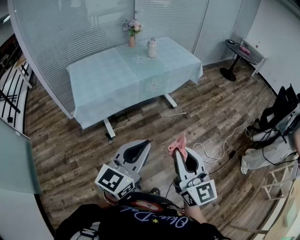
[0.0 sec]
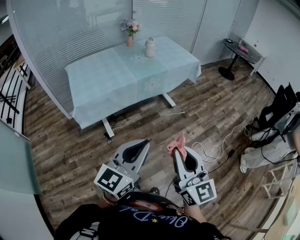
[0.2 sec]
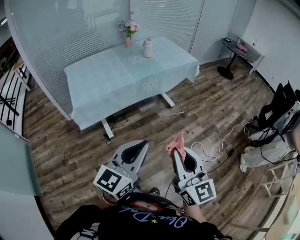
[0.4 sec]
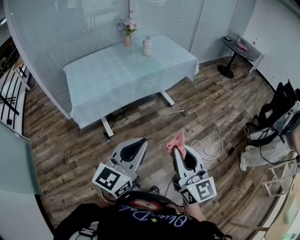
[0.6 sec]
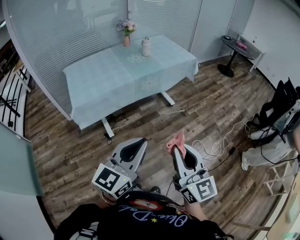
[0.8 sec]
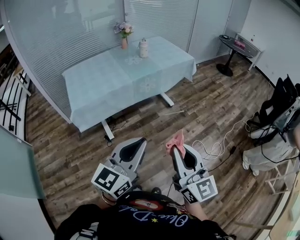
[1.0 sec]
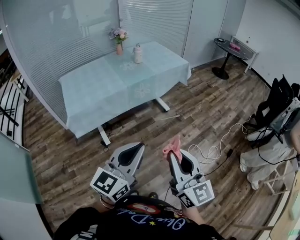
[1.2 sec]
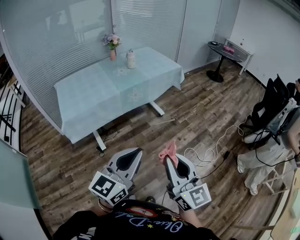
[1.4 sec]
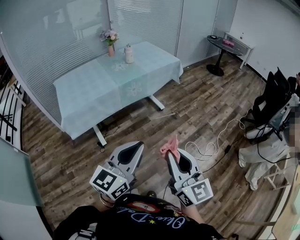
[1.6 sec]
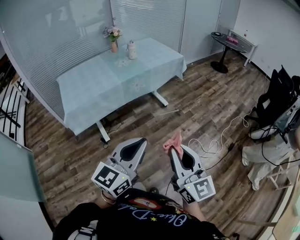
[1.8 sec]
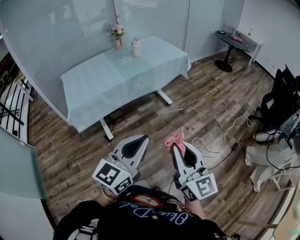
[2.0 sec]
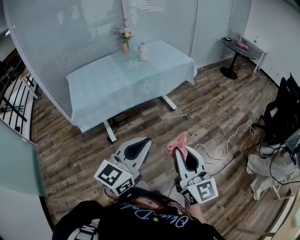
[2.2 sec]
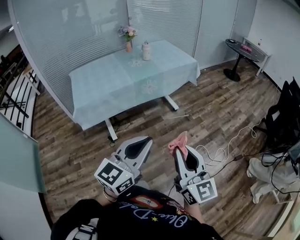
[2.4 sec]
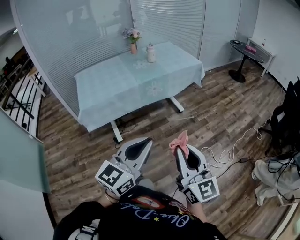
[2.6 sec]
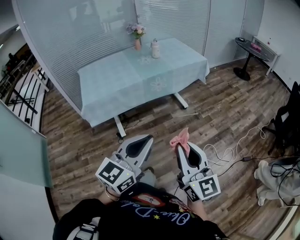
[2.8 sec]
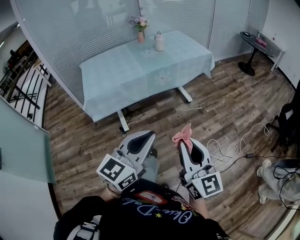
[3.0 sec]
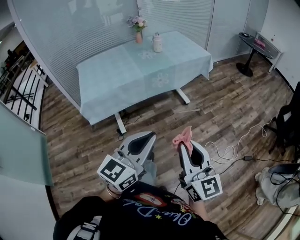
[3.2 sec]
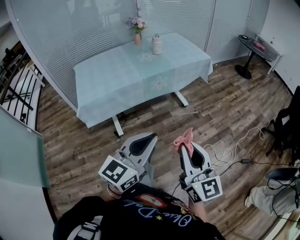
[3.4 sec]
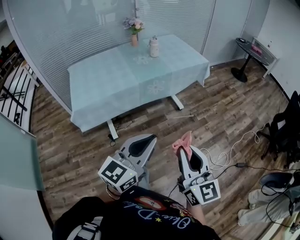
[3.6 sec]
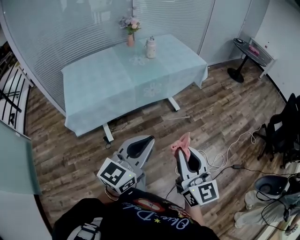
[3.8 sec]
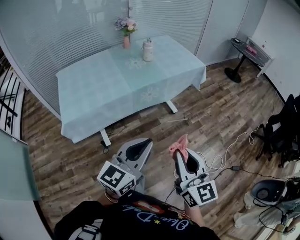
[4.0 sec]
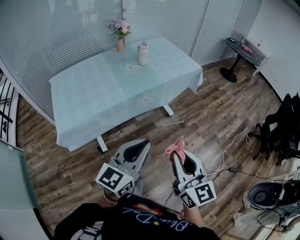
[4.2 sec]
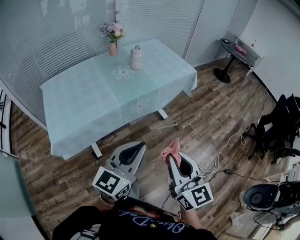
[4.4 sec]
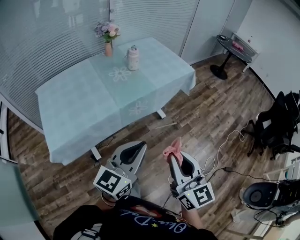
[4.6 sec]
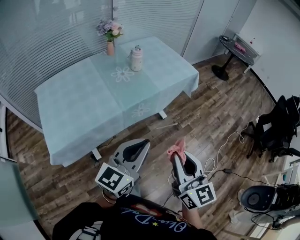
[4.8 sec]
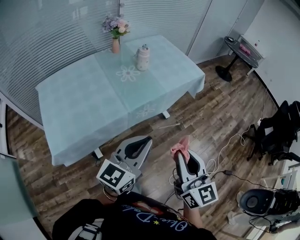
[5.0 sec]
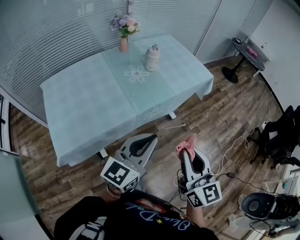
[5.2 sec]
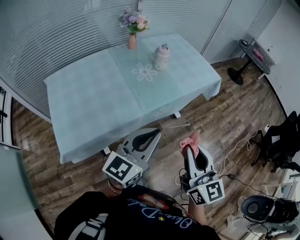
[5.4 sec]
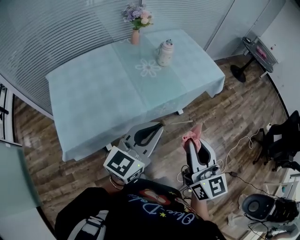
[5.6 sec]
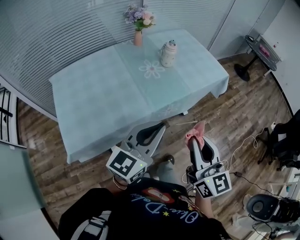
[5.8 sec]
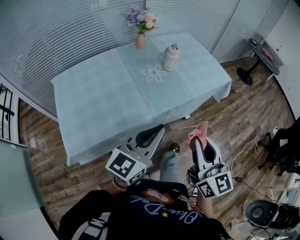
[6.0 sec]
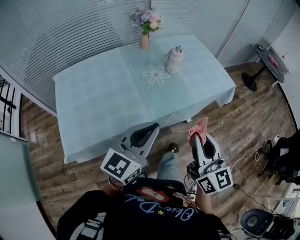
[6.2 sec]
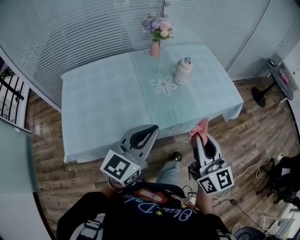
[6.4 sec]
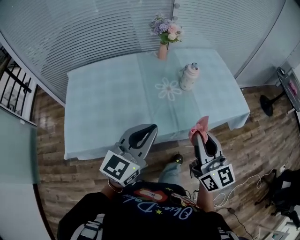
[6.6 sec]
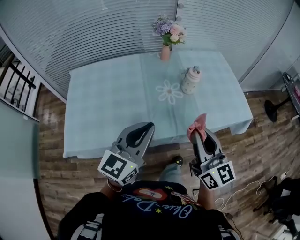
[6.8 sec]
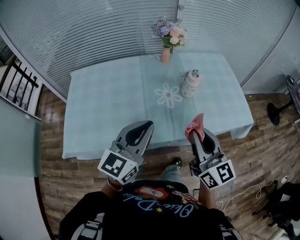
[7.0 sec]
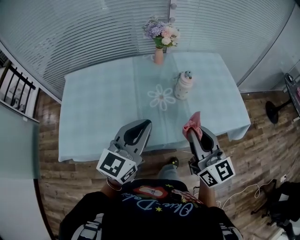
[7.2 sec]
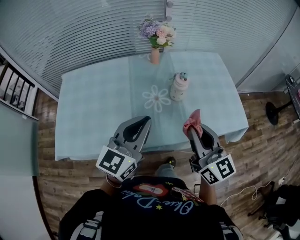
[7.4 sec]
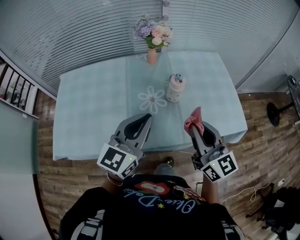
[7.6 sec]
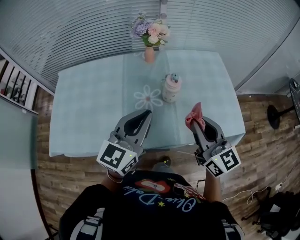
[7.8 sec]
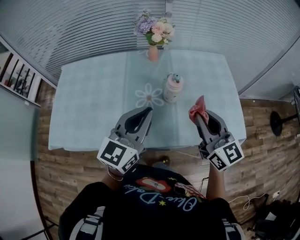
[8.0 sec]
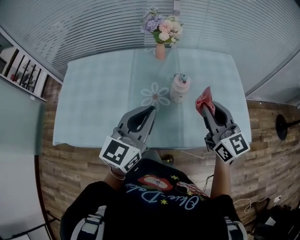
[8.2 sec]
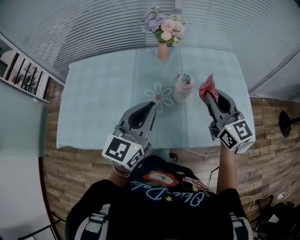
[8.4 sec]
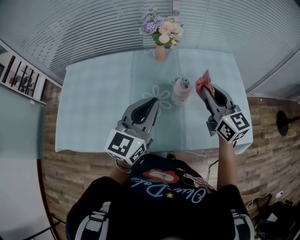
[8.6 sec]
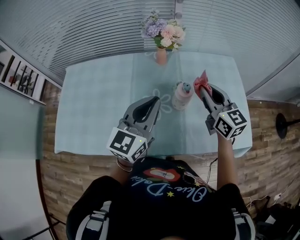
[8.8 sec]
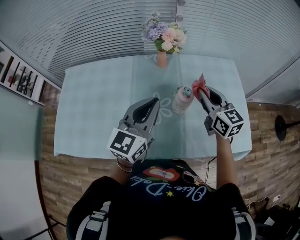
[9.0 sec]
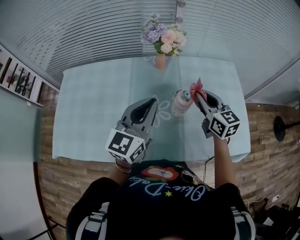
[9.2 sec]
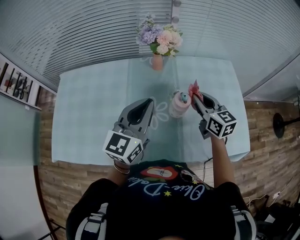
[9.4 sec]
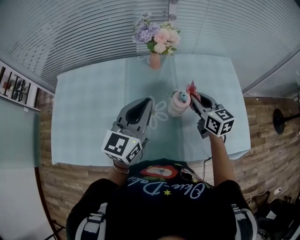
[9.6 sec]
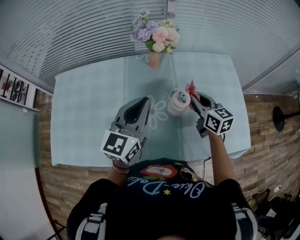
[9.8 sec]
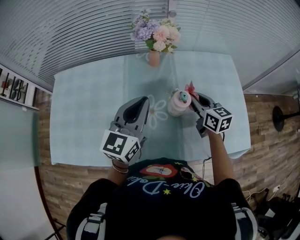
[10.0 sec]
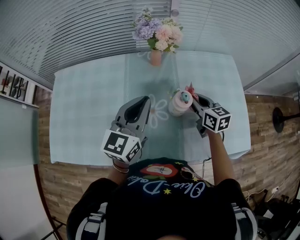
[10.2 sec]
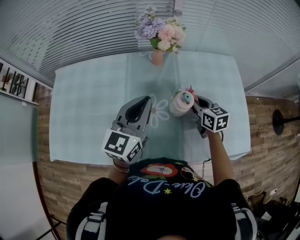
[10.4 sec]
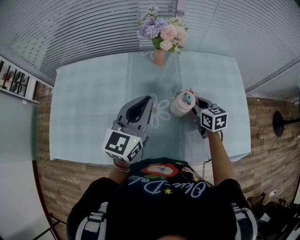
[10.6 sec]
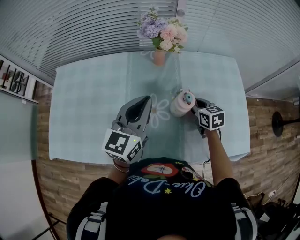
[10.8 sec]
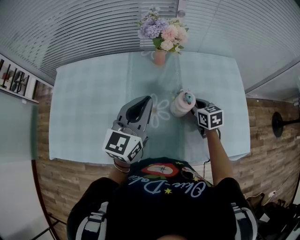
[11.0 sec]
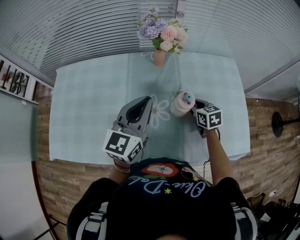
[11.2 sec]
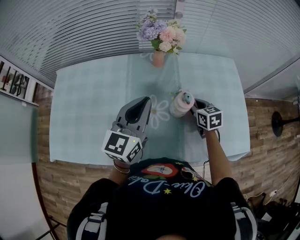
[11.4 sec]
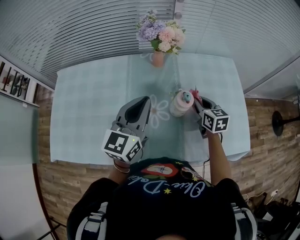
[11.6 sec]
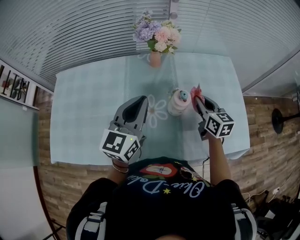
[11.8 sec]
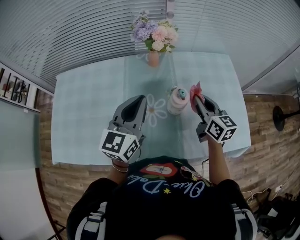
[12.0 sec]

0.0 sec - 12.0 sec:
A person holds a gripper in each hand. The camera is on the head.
0.0 sec - 1.6 sec: Both grippers travel together to the right, roughly 10 cm.
1.6 sec - 3.0 sec: There are only small adjustments of the grippers.
3.0 sec - 4.4 sec: The two grippers go roughly 25 cm forward.
4.4 sec - 6.0 sec: The grippers both shift forward and to the left by approximately 20 cm.
6.0 sec - 7.6 sec: The right gripper shifts by roughly 35 cm, and rotates roughly 30 degrees. Meanwhile the left gripper shifts by roughly 25 cm, and turns by approximately 30 degrees.
7.6 sec - 9.0 sec: The left gripper heads forward, covering roughly 10 cm; the right gripper shifts roughly 25 cm forward.
9.0 sec - 10.4 sec: The left gripper changes place by some 5 cm. Meanwhile the right gripper is displaced downward by roughly 15 cm, and rotates about 20 degrees.
10.4 sec - 12.0 sec: The right gripper travels upward by approximately 10 cm.

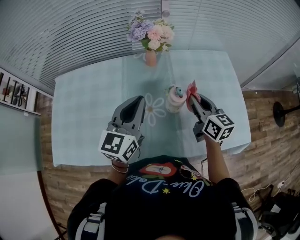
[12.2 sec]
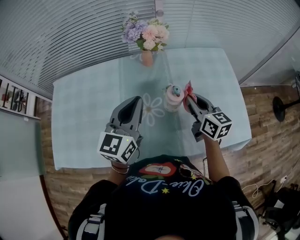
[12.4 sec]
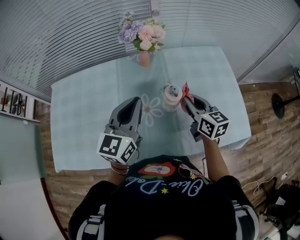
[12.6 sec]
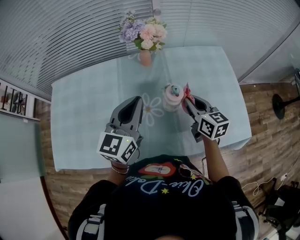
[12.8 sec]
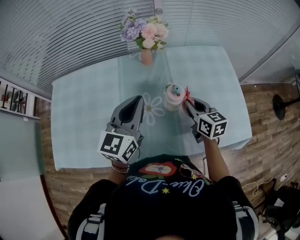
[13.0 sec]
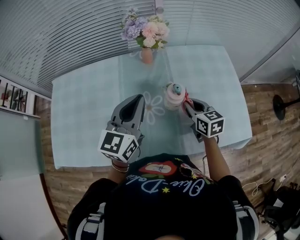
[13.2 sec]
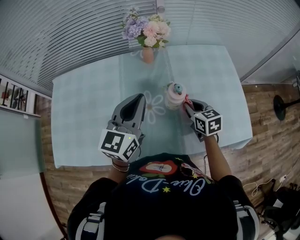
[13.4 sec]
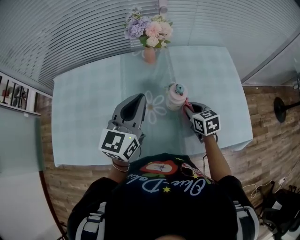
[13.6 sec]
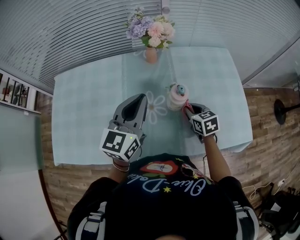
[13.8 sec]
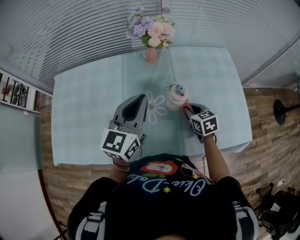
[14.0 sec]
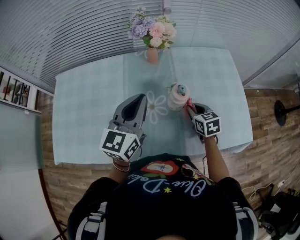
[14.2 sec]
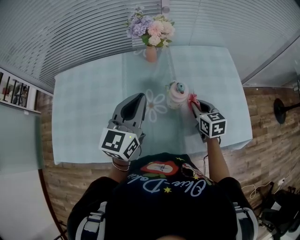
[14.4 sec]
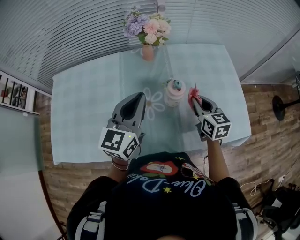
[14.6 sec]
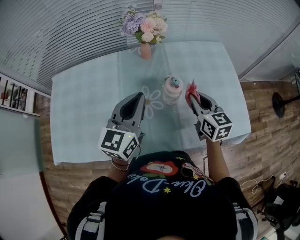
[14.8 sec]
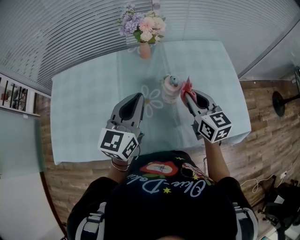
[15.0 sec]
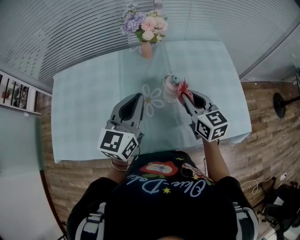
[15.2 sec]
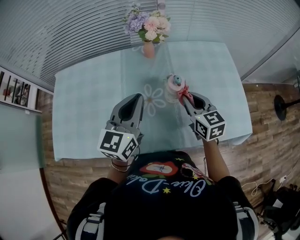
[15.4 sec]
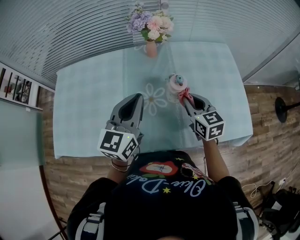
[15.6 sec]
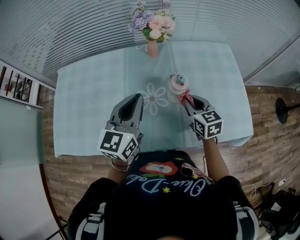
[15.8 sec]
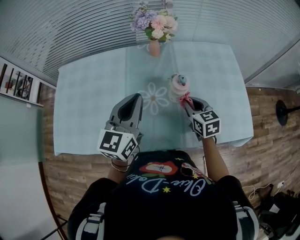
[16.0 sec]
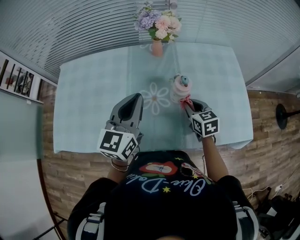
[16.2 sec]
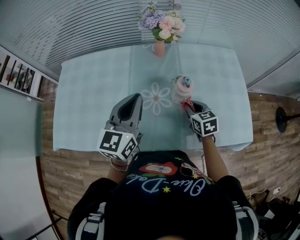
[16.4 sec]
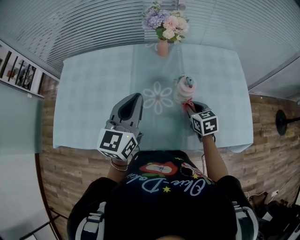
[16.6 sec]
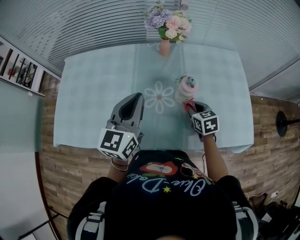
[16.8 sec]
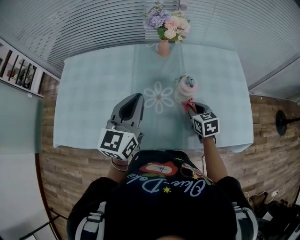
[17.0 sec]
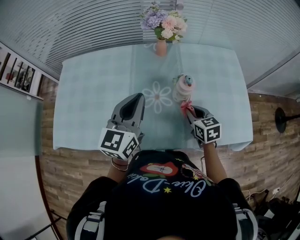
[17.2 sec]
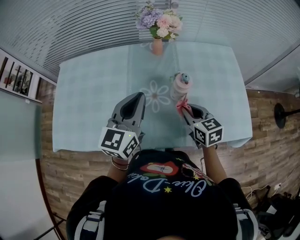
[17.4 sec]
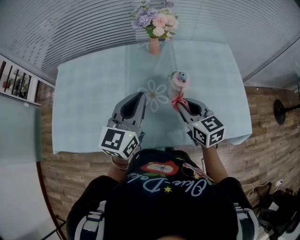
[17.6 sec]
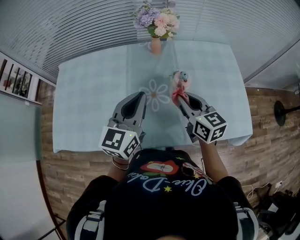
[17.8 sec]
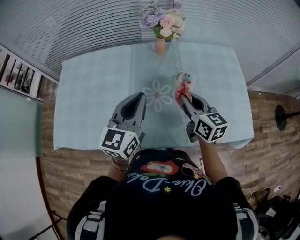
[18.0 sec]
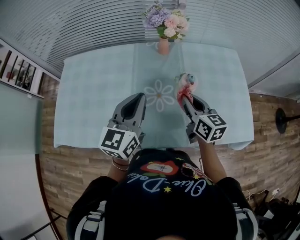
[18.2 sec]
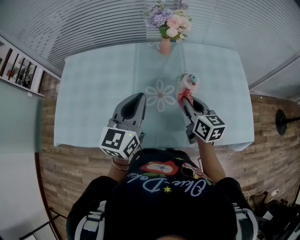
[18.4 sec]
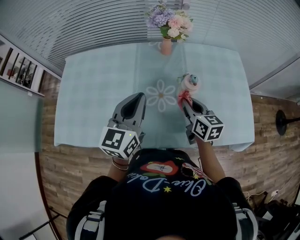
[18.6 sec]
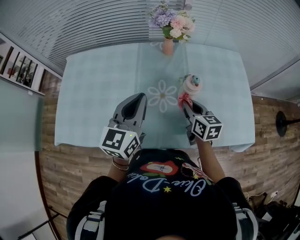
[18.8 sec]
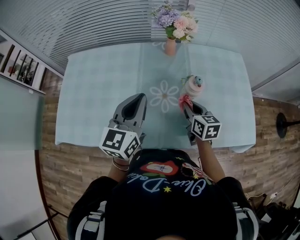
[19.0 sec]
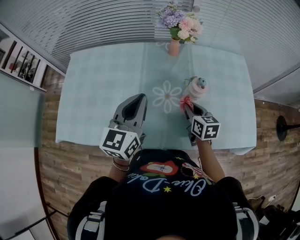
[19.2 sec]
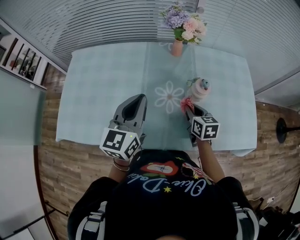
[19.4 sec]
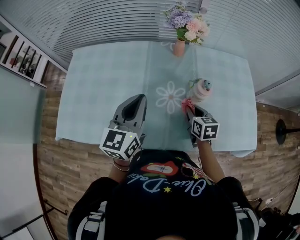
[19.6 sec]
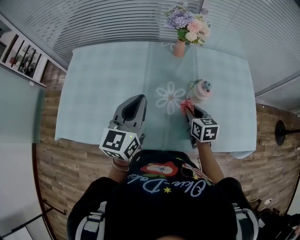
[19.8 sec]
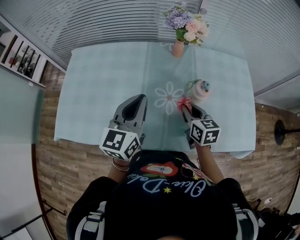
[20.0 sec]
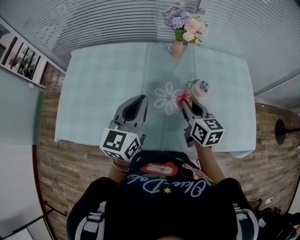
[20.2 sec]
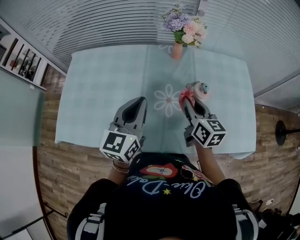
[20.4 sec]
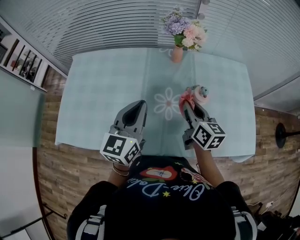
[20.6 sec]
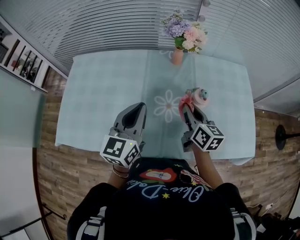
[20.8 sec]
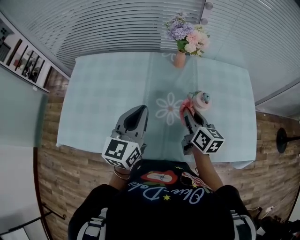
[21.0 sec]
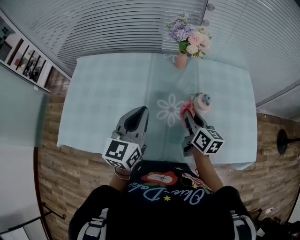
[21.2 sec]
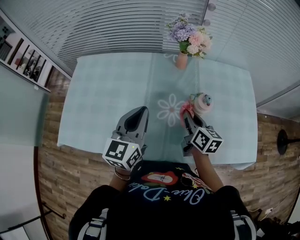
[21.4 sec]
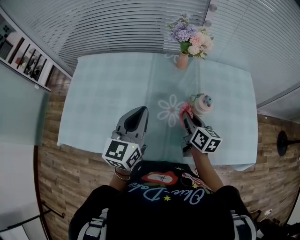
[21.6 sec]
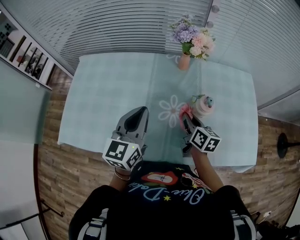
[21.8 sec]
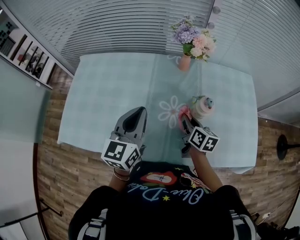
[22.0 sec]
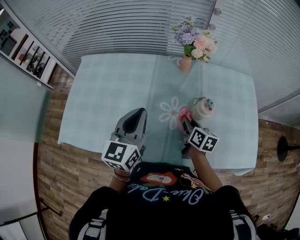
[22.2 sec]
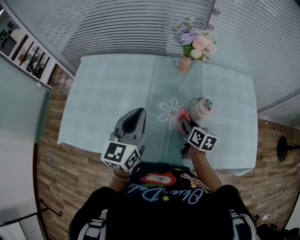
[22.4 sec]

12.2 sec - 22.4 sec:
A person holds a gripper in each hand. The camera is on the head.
12.2 sec - 13.6 sec: The right gripper travels downward by some 15 cm, and swivels roughly 30 degrees.
13.6 sec - 15.2 sec: The right gripper is displaced upward by some 15 cm, and changes its angle by roughly 20 degrees.
15.2 sec - 16.6 sec: The right gripper goes approximately 15 cm downward, and swivels some 20 degrees.
16.6 sec - 18.0 sec: The right gripper is displaced upward by approximately 15 cm, and rotates roughly 30 degrees.
18.0 sec - 19.4 sec: The left gripper travels to the left by some 5 cm; the right gripper heads downward, covering roughly 10 cm, and turns by about 20 degrees.
19.4 sec - 21.0 sec: The right gripper heads upward, covering roughly 10 cm, and swivels roughly 20 degrees.
21.0 sec - 22.4 sec: The right gripper goes approximately 10 cm downward.

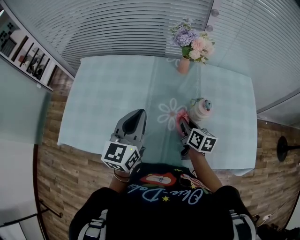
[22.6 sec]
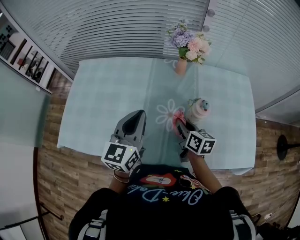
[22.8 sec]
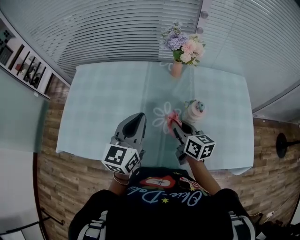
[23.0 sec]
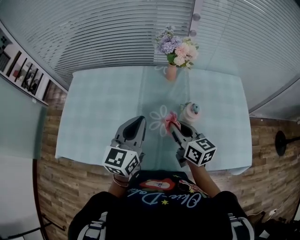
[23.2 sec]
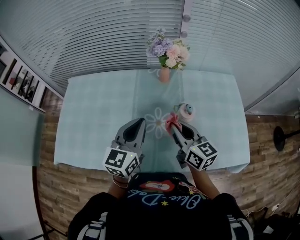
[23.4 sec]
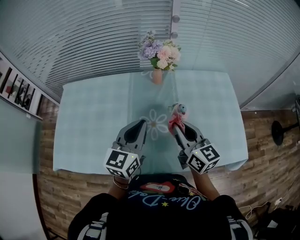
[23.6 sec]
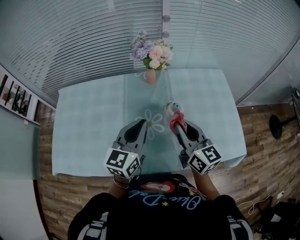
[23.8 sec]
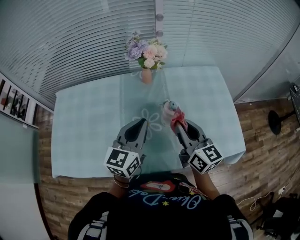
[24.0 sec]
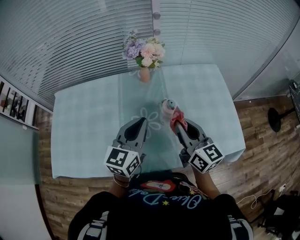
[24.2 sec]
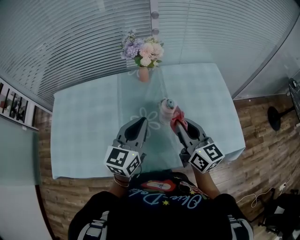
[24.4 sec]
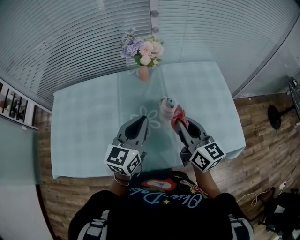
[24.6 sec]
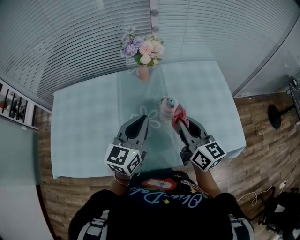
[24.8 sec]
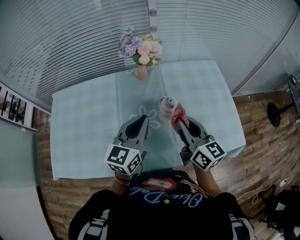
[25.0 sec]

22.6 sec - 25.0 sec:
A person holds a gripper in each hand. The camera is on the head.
22.6 sec - 23.8 sec: The left gripper goes approximately 10 cm to the right. Meanwhile the right gripper heads upward, covering some 15 cm, and changes its angle by approximately 30 degrees.
23.8 sec - 25.0 sec: The grippers make only small movements.
